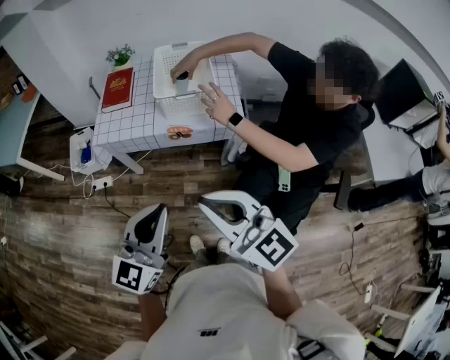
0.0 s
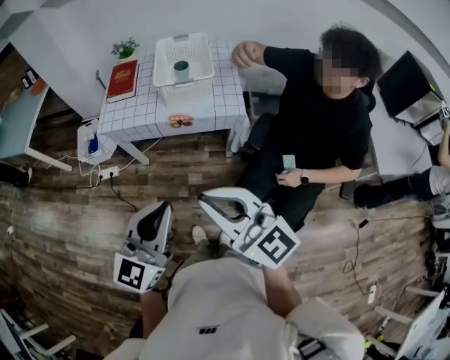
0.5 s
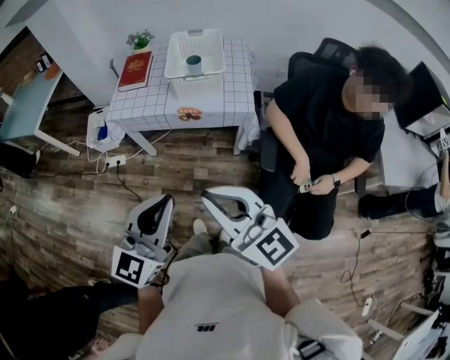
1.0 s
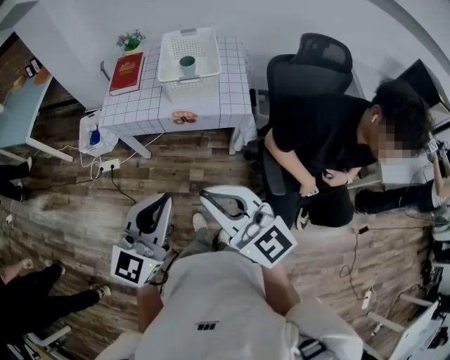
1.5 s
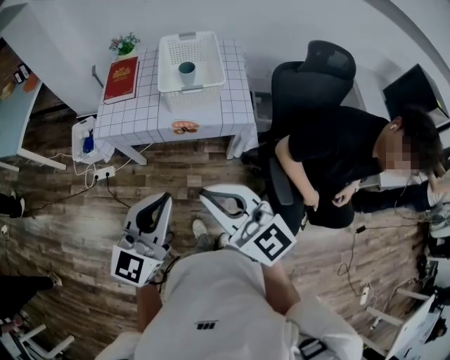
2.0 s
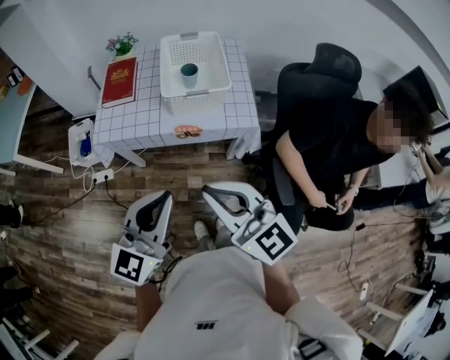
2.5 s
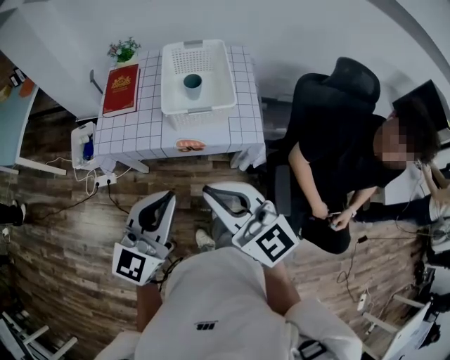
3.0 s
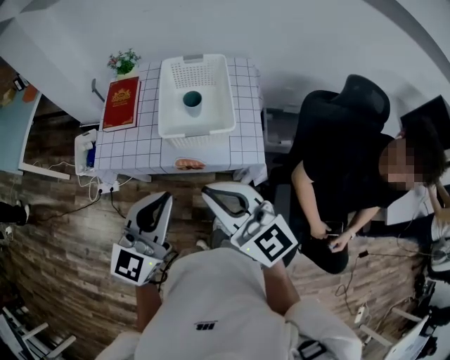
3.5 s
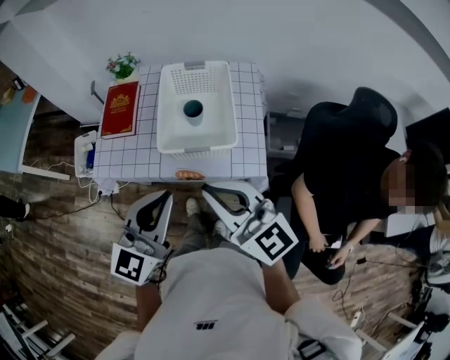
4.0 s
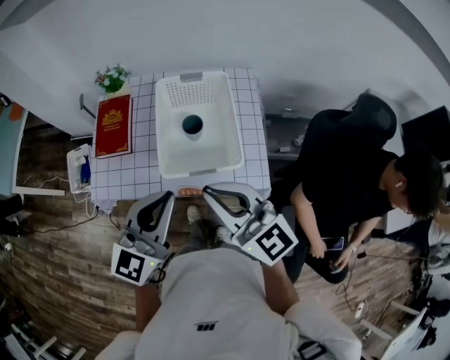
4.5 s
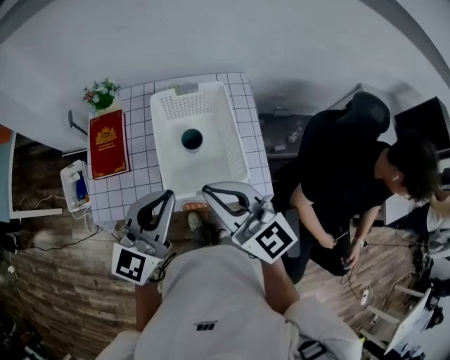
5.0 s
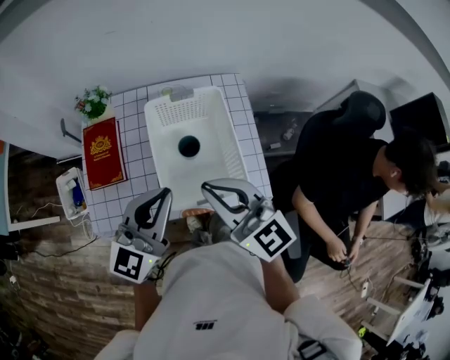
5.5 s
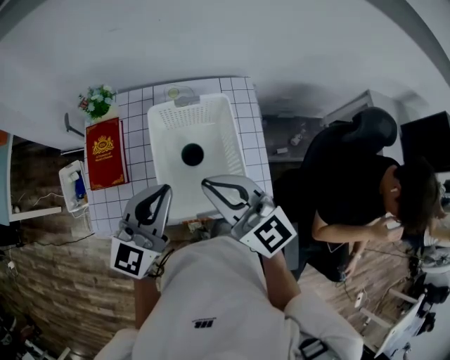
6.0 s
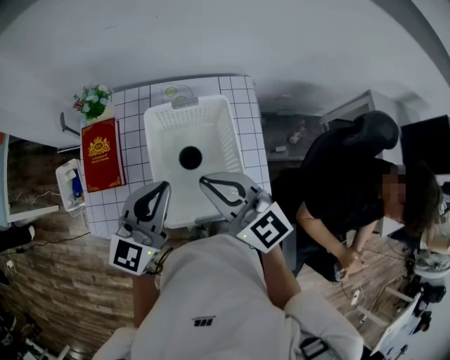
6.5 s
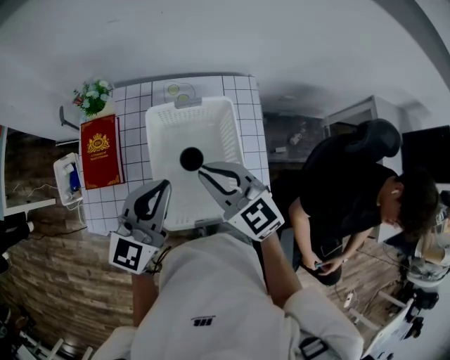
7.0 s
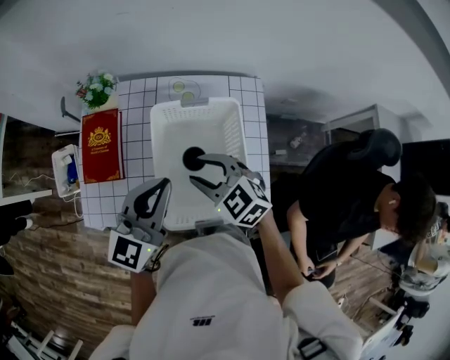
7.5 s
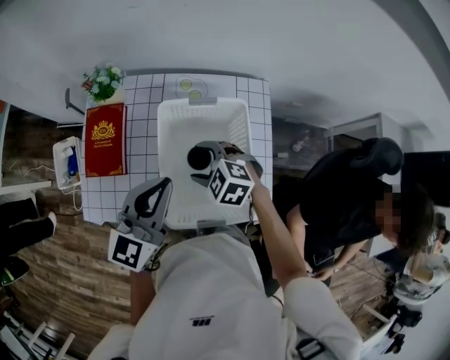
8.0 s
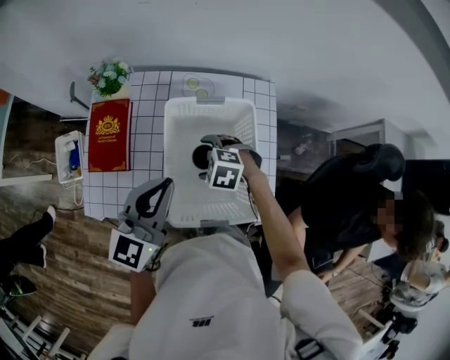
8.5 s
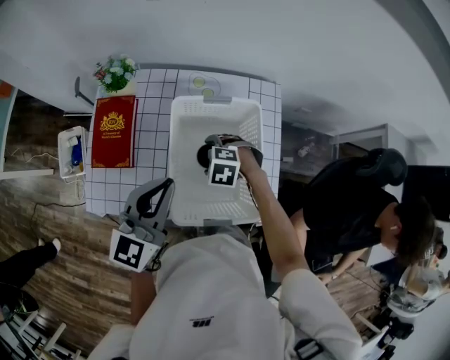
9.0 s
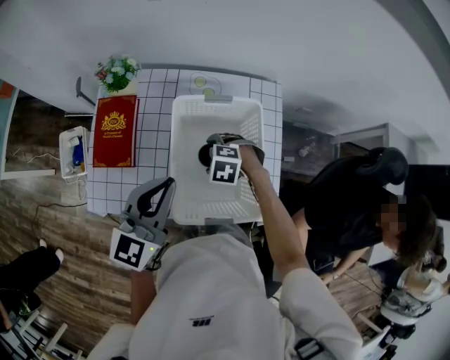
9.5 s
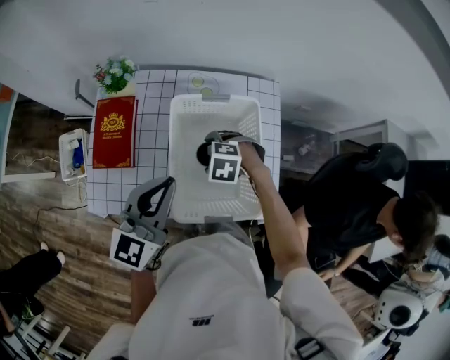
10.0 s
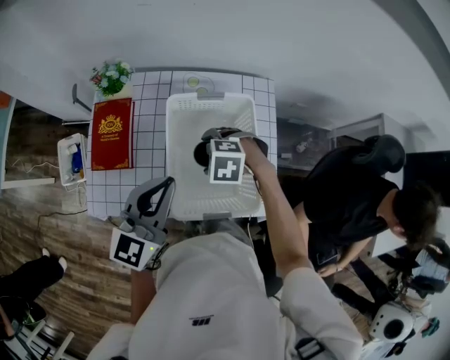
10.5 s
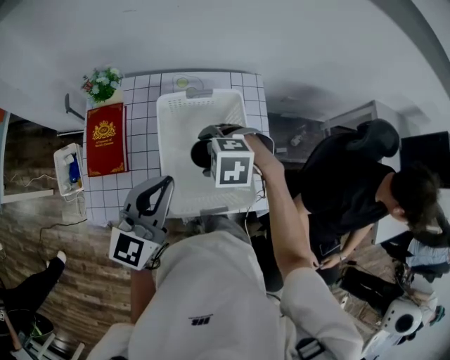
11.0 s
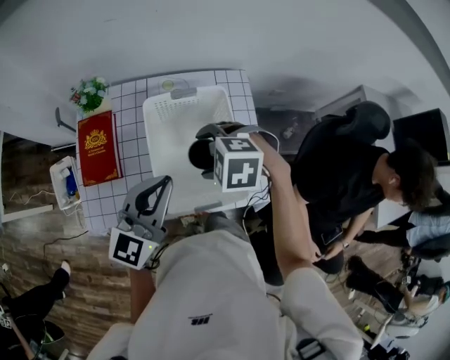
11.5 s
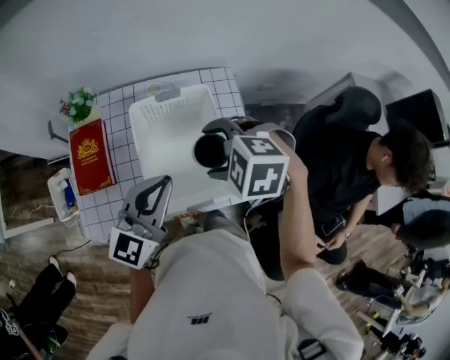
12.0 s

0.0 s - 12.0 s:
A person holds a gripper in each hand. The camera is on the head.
0.0 s - 2.0 s: Both grippers travel together forward, roughly 5 cm.
2.0 s - 4.0 s: The two grippers go approximately 25 cm forward.
4.0 s - 6.0 s: Both grippers travel together forward, some 25 cm.
6.0 s - 8.0 s: The right gripper moves downward and forward, roughly 25 cm, tilts its fingers approximately 50 degrees downward, and opens up. The left gripper ends up approximately 5 cm from where it was.
8.0 s - 10.0 s: The right gripper travels downward by approximately 5 cm, and rotates some 20 degrees.
10.0 s - 12.0 s: The left gripper changes place by approximately 5 cm. Meanwhile the right gripper moves upward, approximately 20 cm.

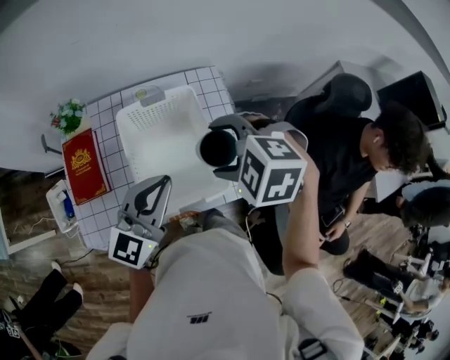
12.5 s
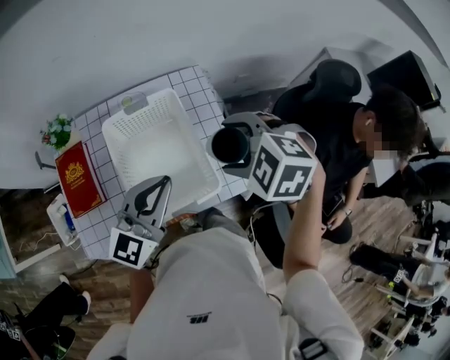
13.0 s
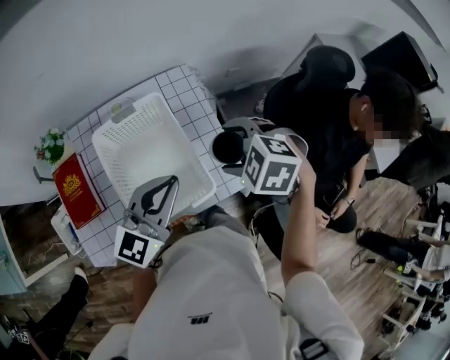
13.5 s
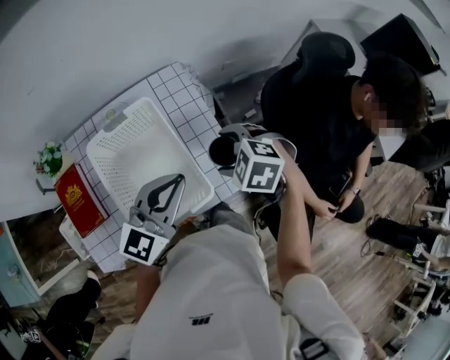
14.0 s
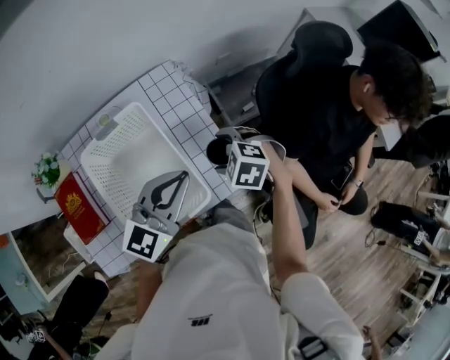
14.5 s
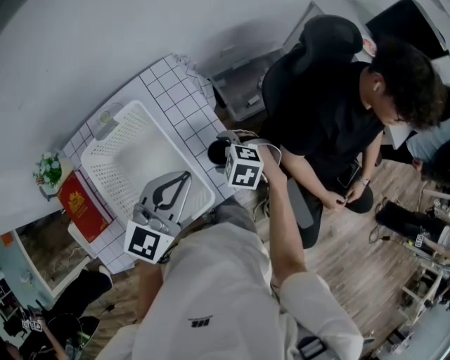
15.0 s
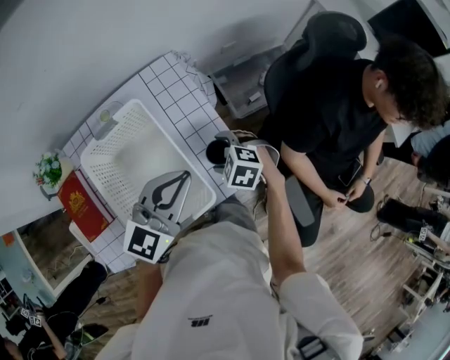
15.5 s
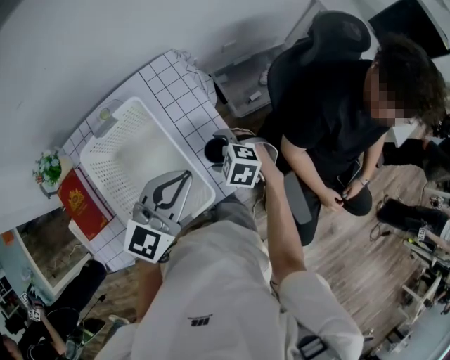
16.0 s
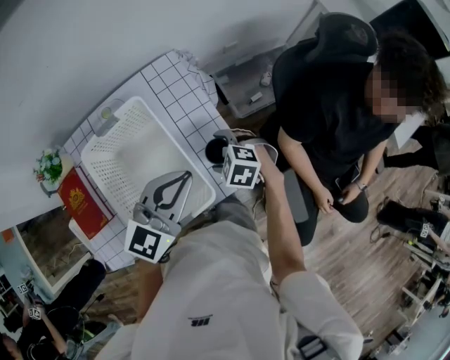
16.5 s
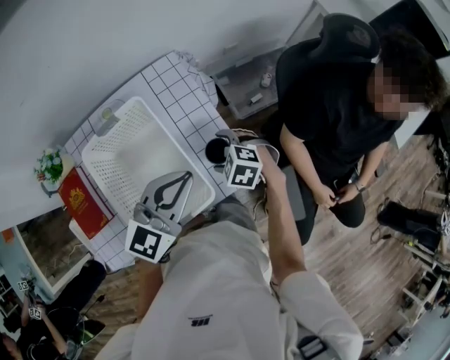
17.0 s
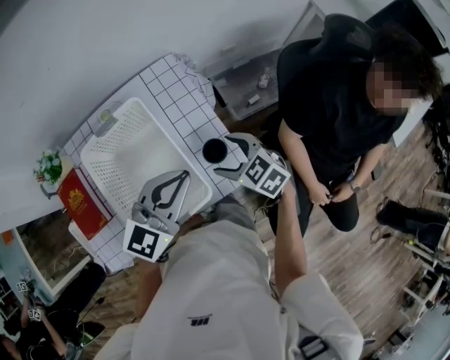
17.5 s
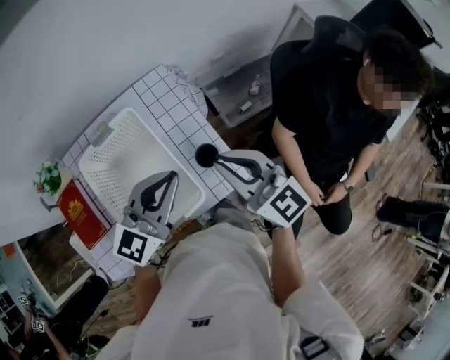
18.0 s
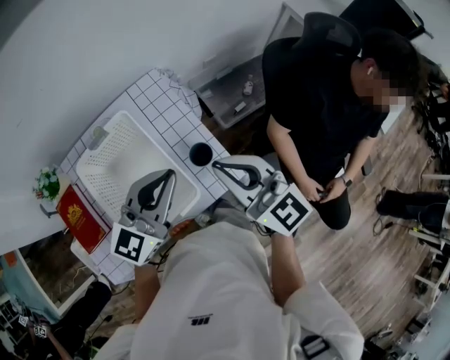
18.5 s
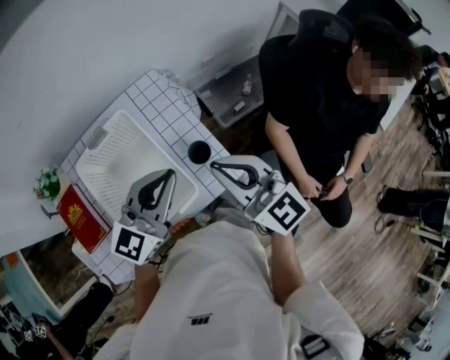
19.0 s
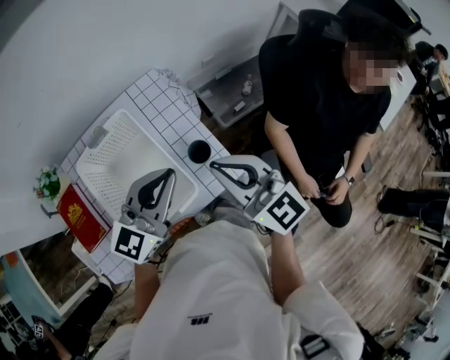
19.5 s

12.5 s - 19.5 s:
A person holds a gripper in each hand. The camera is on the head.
12.5 s - 14.5 s: The left gripper moves to the right, approximately 15 cm, and changes its angle by roughly 20 degrees; the right gripper is displaced downward and to the right by roughly 25 cm, and rotates approximately 30 degrees.
14.5 s - 16.0 s: The right gripper goes some 5 cm downward.
16.0 s - 17.5 s: The right gripper is displaced upward by about 5 cm, and rotates roughly 30 degrees.
17.5 s - 19.5 s: The left gripper moves about 5 cm; the right gripper moves upward, approximately 20 cm, points its fingers about 40 degrees further upward, and closes up.

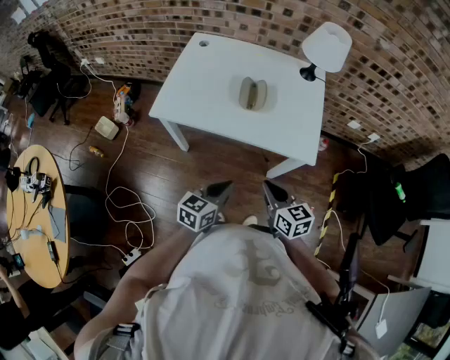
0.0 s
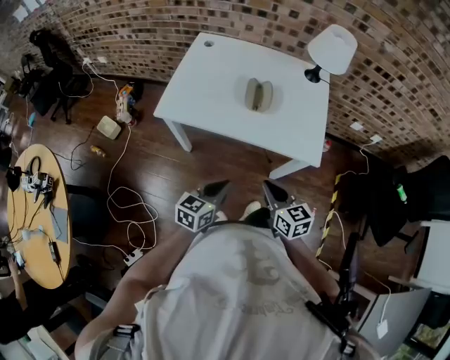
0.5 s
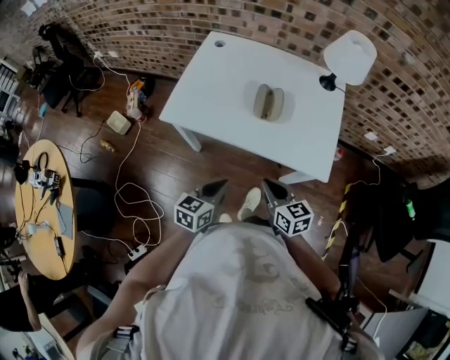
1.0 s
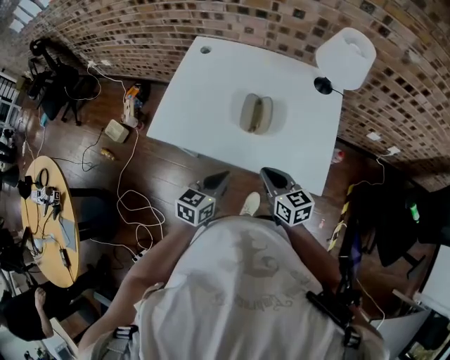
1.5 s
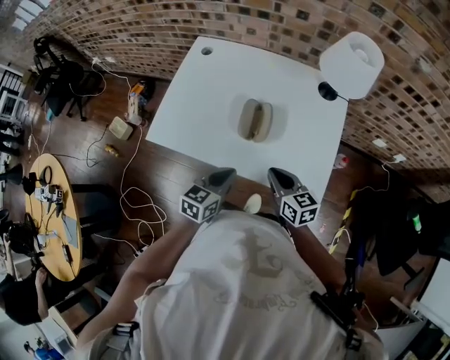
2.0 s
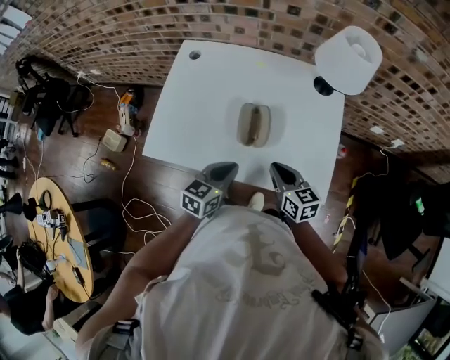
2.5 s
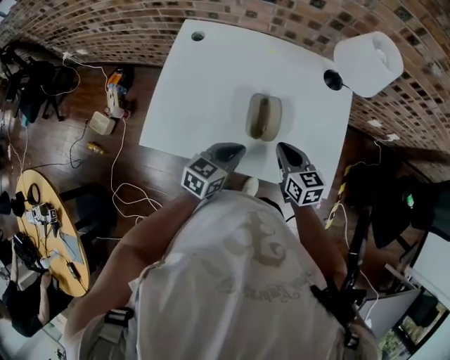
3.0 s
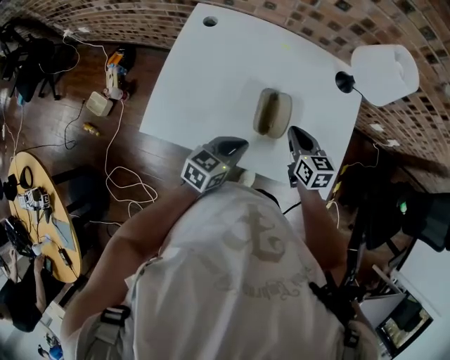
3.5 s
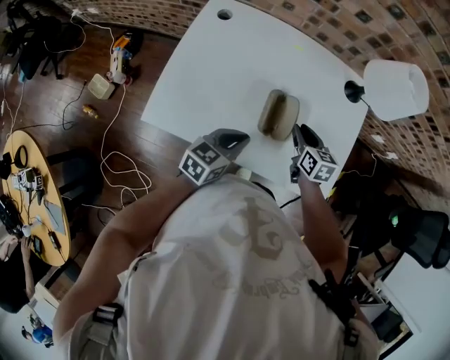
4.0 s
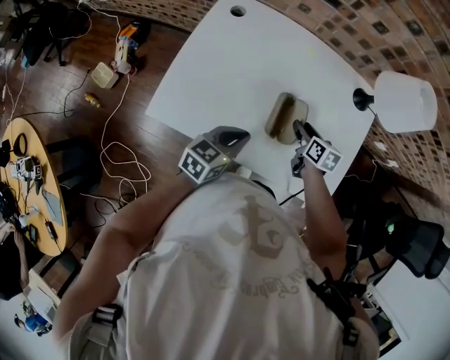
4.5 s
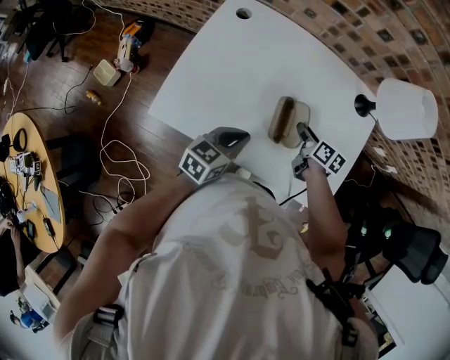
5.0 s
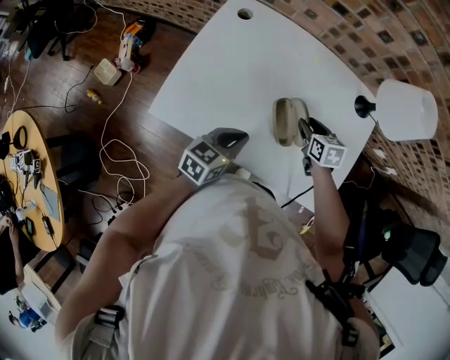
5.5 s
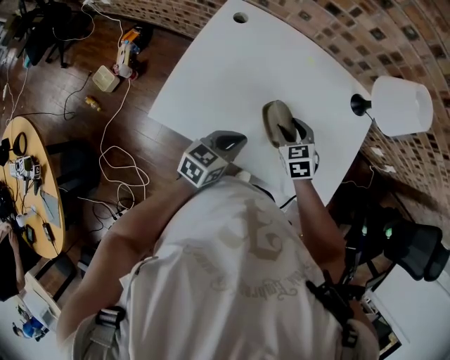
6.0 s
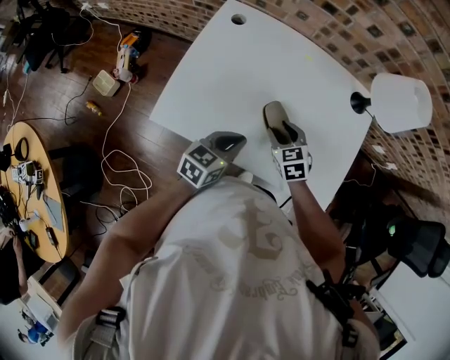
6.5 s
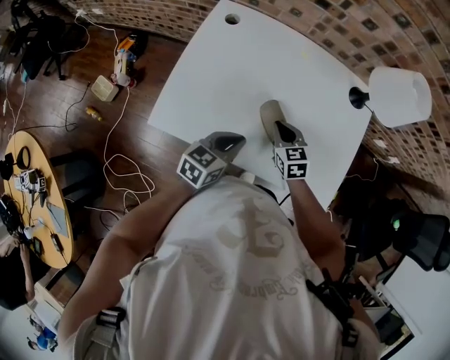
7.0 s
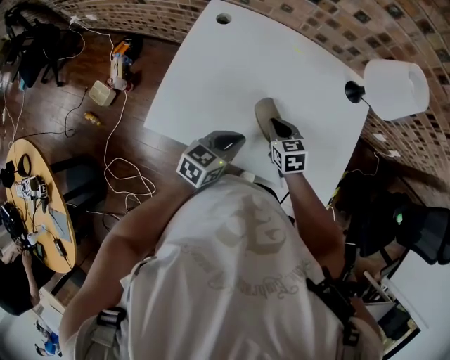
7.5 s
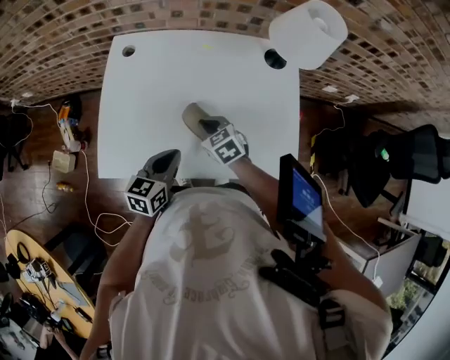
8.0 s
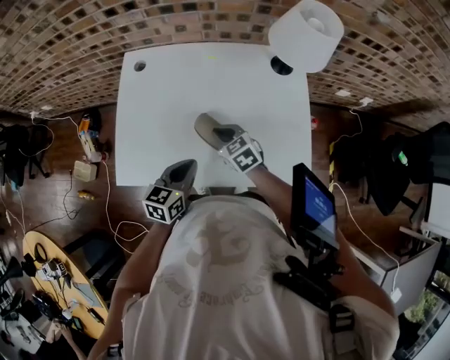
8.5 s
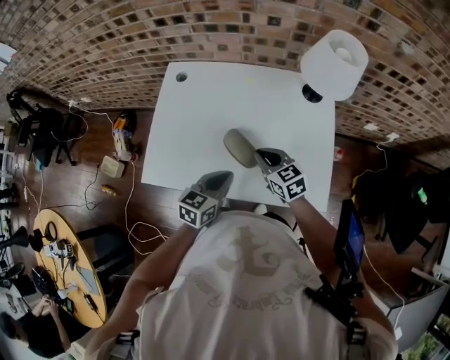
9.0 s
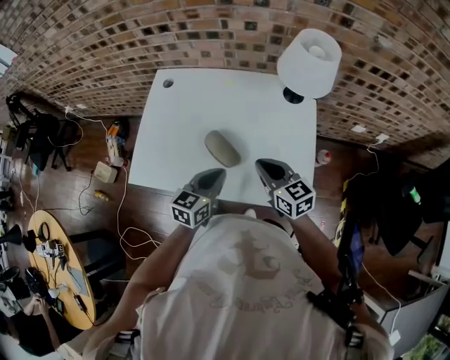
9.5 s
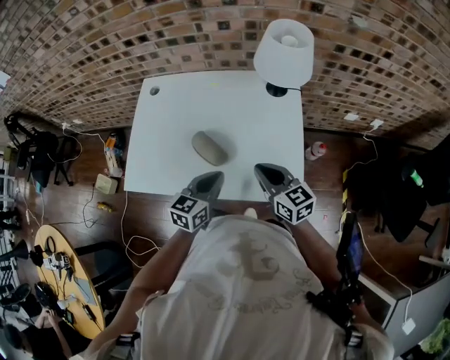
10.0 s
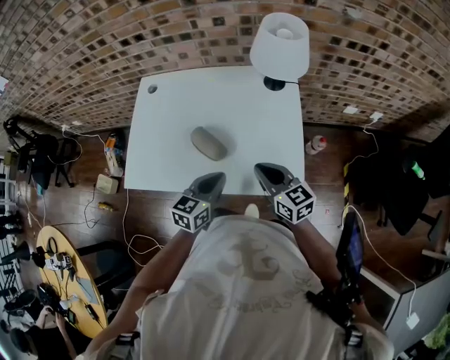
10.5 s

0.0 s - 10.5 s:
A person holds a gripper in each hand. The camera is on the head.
0.0 s - 2.0 s: The grippers both shift forward by roughly 20 cm.
2.0 s - 4.0 s: The right gripper shifts some 20 cm forward, turns by some 20 degrees, and opens; the left gripper goes roughly 10 cm forward and to the left.
4.0 s - 6.5 s: The right gripper heads to the left, covering about 10 cm, and rotates roughly 40 degrees.
6.5 s - 8.5 s: The right gripper closes its fingers.
8.5 s - 10.5 s: The left gripper is displaced to the right by some 15 cm; the right gripper is displaced to the right, backward and upward by some 25 cm, and changes its angle by about 30 degrees.
